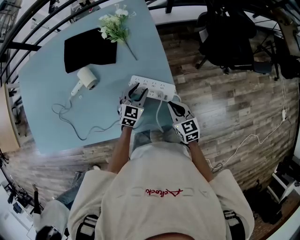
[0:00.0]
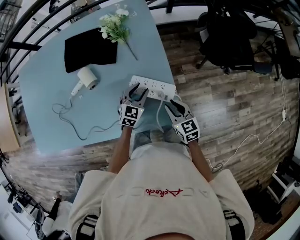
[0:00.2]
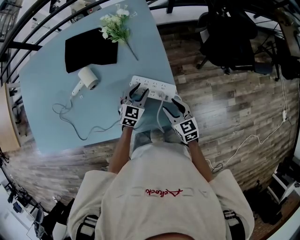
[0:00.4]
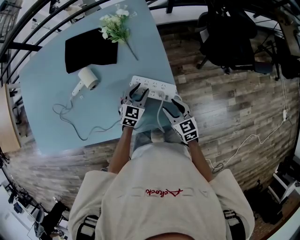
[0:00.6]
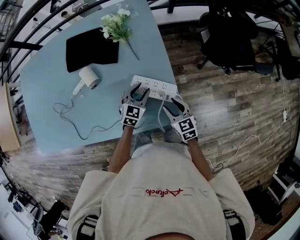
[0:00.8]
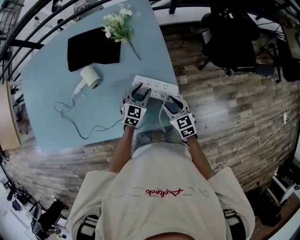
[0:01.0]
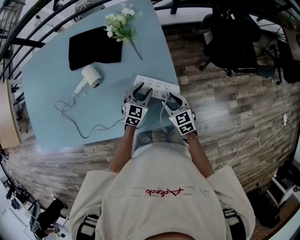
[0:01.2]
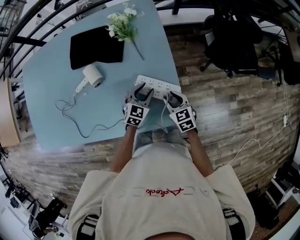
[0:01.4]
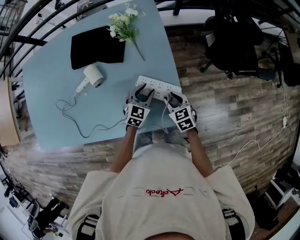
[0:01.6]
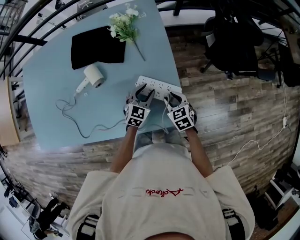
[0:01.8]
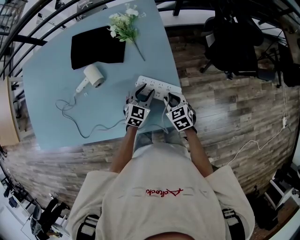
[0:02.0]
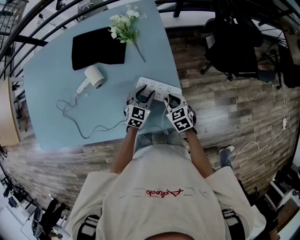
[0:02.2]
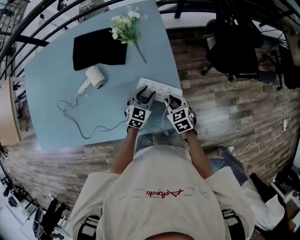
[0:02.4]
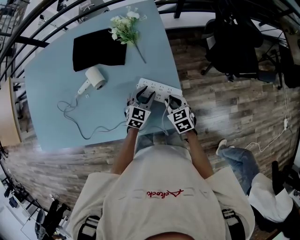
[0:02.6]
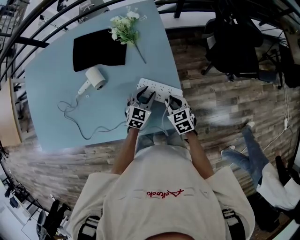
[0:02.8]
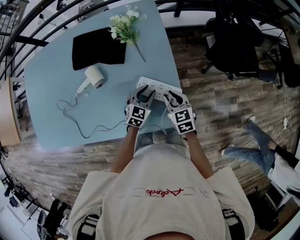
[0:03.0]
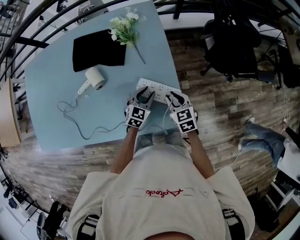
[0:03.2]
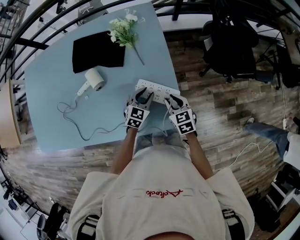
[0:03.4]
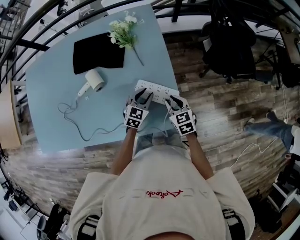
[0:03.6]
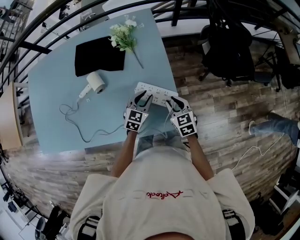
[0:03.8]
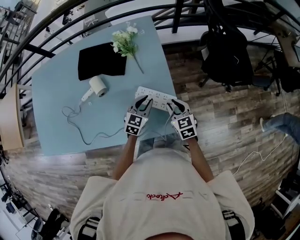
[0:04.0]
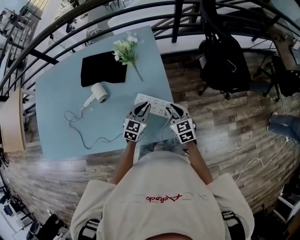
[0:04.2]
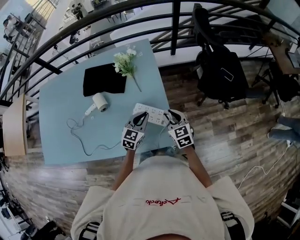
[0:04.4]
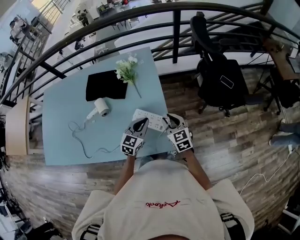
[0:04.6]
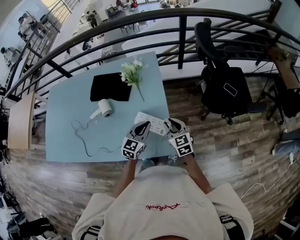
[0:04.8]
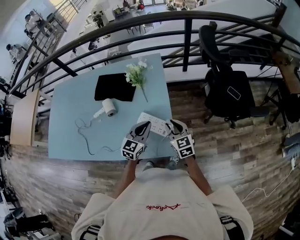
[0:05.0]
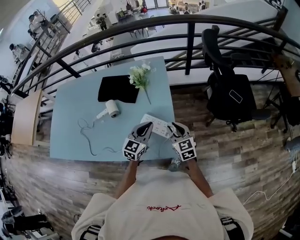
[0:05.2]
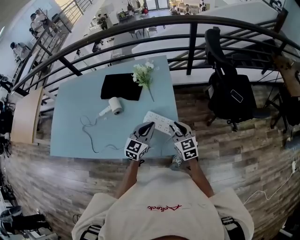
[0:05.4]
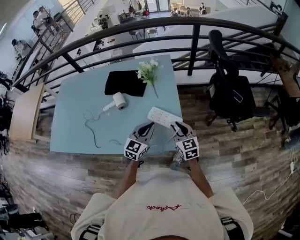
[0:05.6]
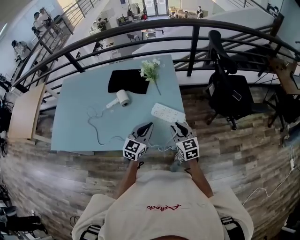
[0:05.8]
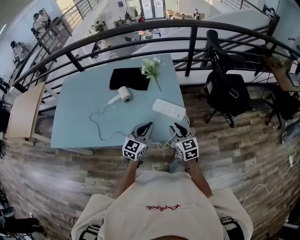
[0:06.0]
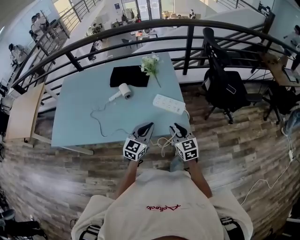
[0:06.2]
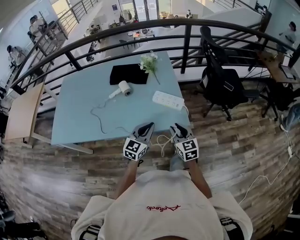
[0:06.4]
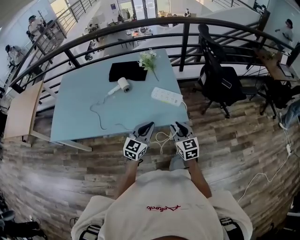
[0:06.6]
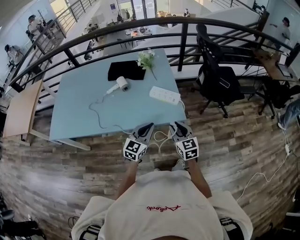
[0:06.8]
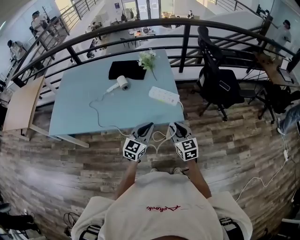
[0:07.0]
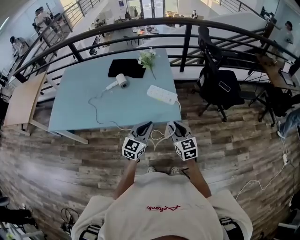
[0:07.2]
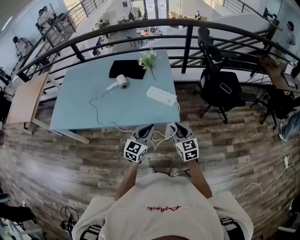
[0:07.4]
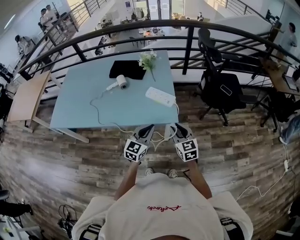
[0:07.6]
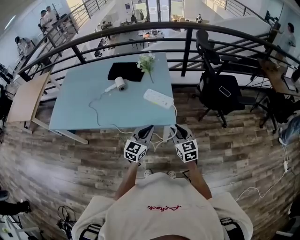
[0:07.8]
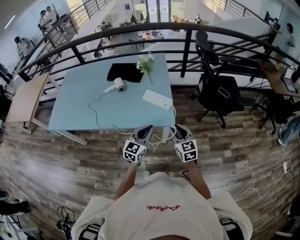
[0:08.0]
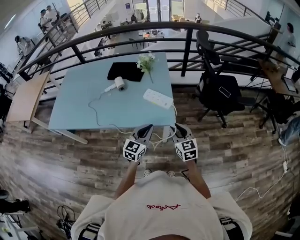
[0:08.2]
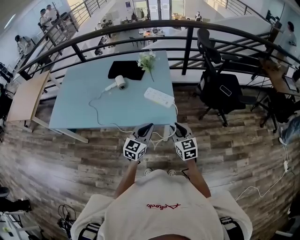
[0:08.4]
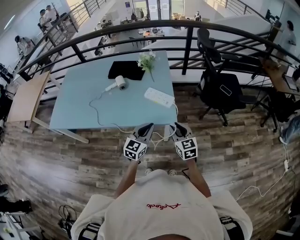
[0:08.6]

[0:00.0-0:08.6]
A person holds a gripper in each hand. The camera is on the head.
0:00.0 to 0:01.4: The right gripper ends up some 5 cm from where it was, and opens its fingers.
0:01.4 to 0:02.8: The grippers make only small movements.
0:02.8 to 0:04.4: Both grippers move upward, approximately 10 cm. The left gripper closes its fingers.
0:04.4 to 0:05.8: The grippers both shift backward, upward and to the left by about 15 cm.
0:05.8 to 0:07.2: The grippers both shift backward by approximately 20 cm.
0:07.2 to 0:08.6: The right gripper changes place by approximately 5 cm.

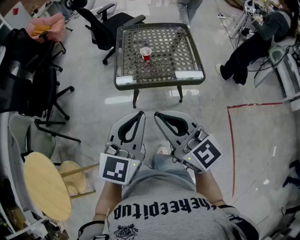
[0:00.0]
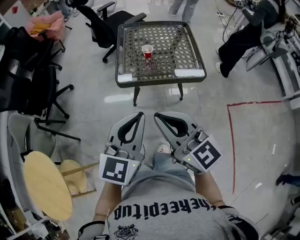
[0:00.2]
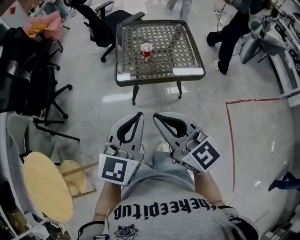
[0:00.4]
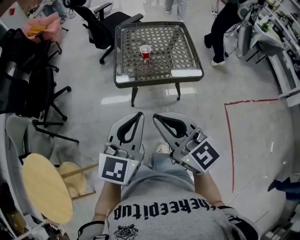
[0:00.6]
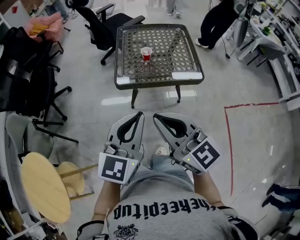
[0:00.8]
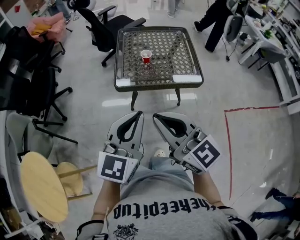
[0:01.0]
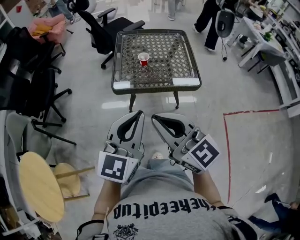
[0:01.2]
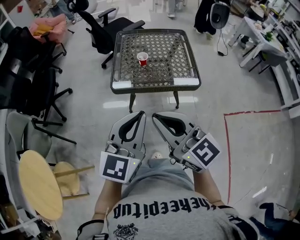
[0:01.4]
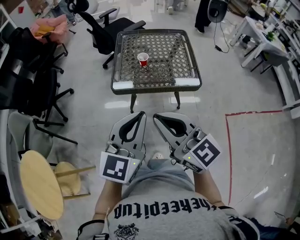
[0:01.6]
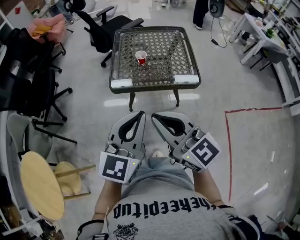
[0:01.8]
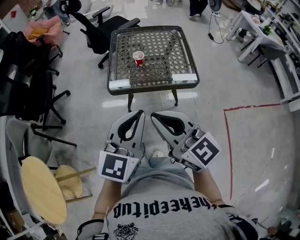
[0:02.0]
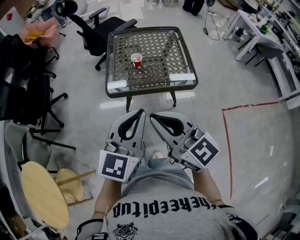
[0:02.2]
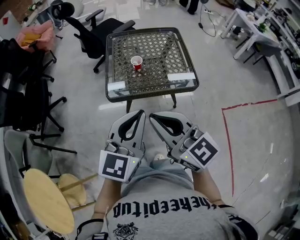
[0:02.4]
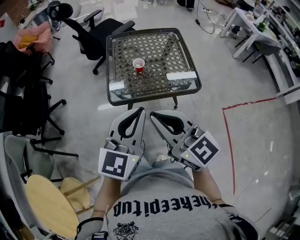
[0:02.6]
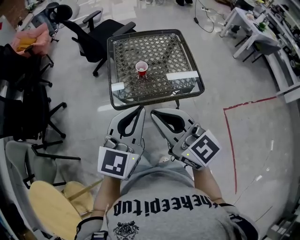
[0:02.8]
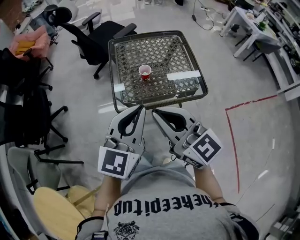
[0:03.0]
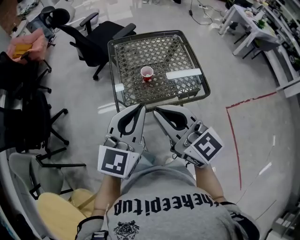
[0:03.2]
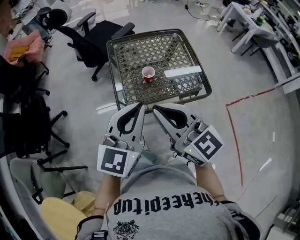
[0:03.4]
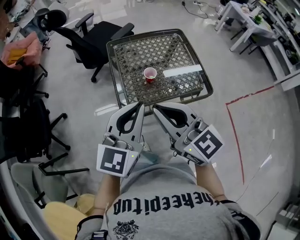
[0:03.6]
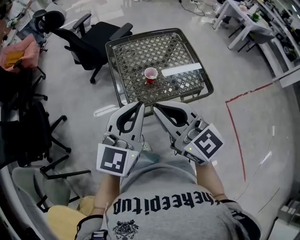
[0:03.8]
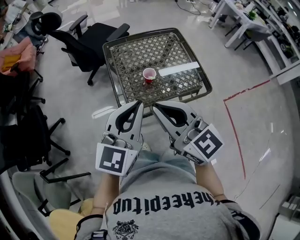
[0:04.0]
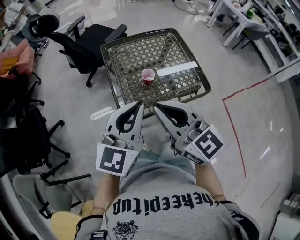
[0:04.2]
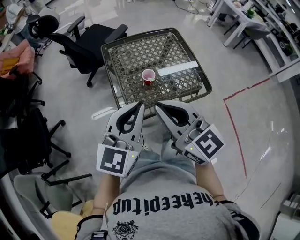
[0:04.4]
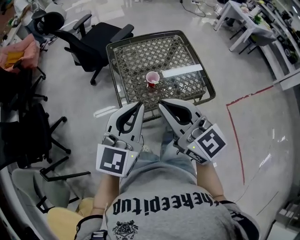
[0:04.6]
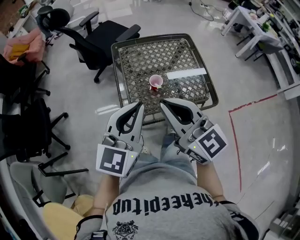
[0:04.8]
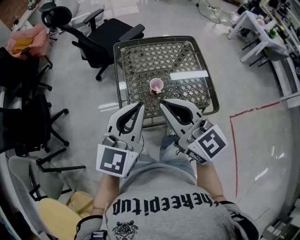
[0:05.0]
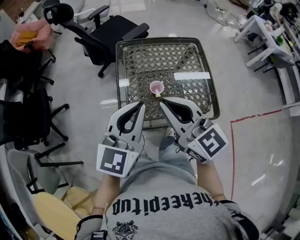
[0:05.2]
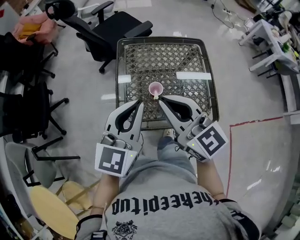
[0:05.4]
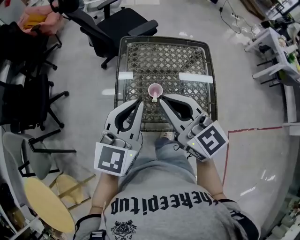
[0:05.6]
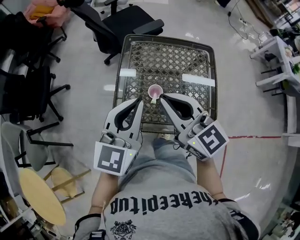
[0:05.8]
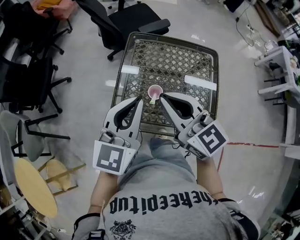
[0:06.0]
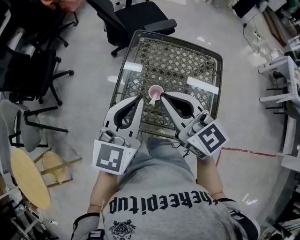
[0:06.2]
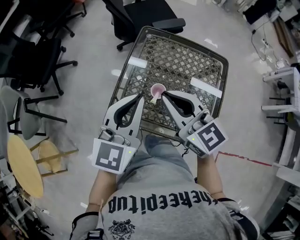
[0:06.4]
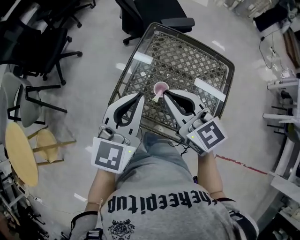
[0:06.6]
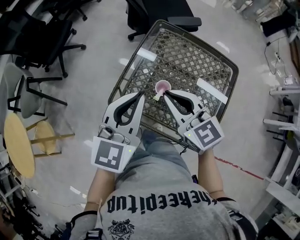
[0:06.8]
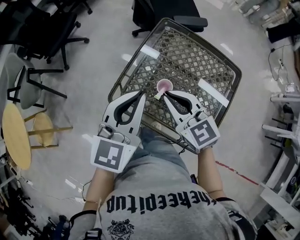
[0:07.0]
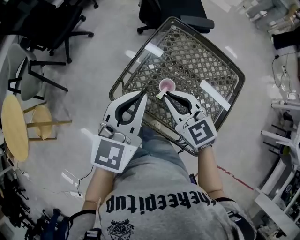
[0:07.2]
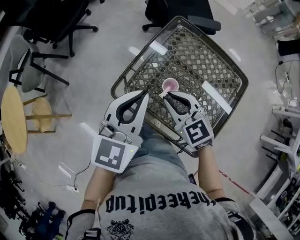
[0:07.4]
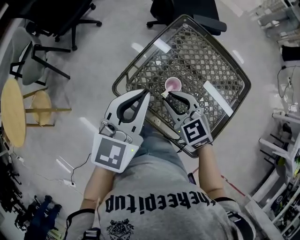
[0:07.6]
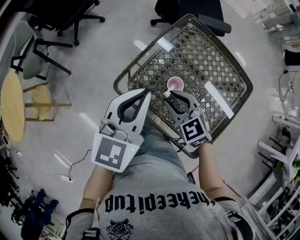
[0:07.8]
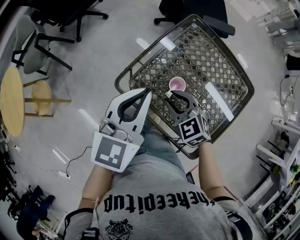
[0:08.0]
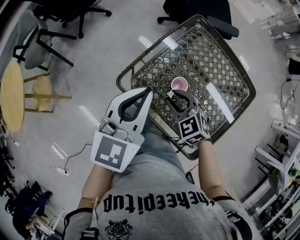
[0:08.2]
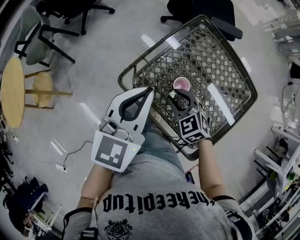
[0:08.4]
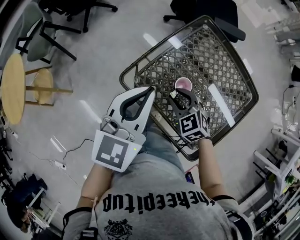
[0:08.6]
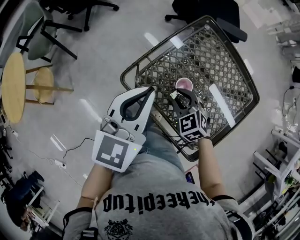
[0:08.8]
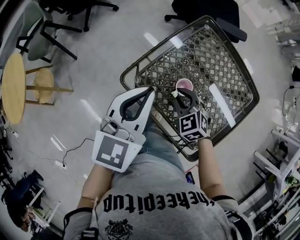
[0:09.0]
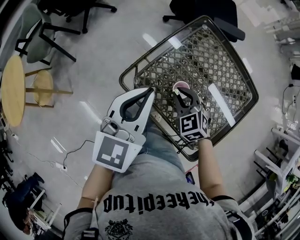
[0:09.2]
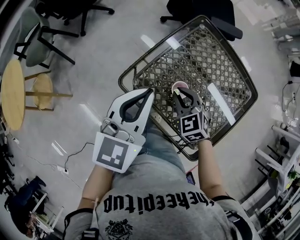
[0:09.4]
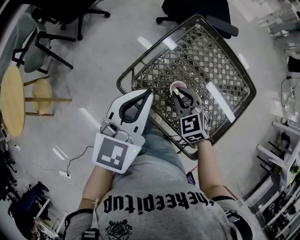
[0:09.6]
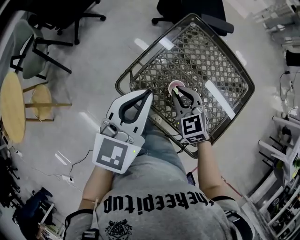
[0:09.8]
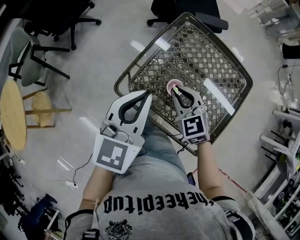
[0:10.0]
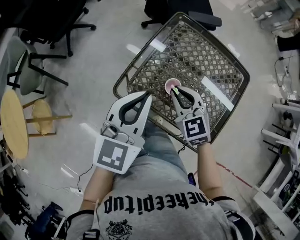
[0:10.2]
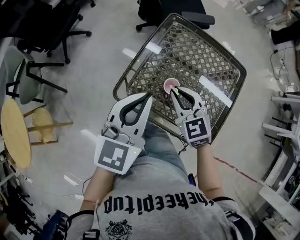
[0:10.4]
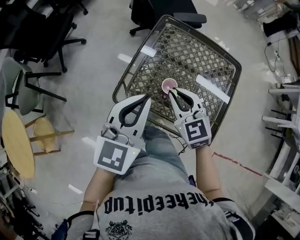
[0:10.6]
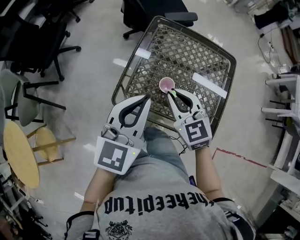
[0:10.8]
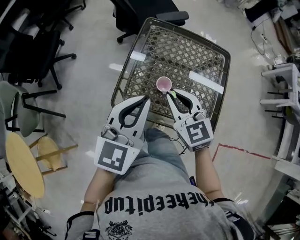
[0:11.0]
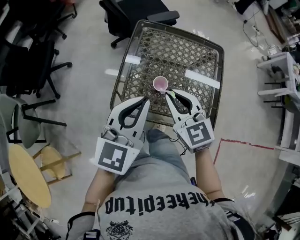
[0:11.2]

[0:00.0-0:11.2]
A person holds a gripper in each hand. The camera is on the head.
0:00.0 to 0:01.6: The grippers stay close to where they were, moving slightly.
0:01.6 to 0:03.2: The two grippers go roughly 20 cm forward.
0:03.2 to 0:04.8: Both grippers travel together forward, roughly 10 cm.
0:04.8 to 0:06.4: The left gripper changes place by roughly 10 cm, and turns by about 30 degrees, while the right gripper moves approximately 15 cm, and swivels some 30 degrees.
0:06.4 to 0:08.0: The left gripper ends up some 5 cm from where it was, and swivels some 20 degrees; the right gripper shifts about 20 cm downward, turns by some 40 degrees, and opens.
0:08.0 to 0:09.6: The right gripper closes.
0:09.6 to 0:11.2: The left gripper moves some 5 cm, and changes its angle by about 30 degrees; the right gripper travels upward by about 15 cm, and changes its angle by about 40 degrees.

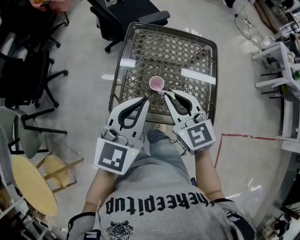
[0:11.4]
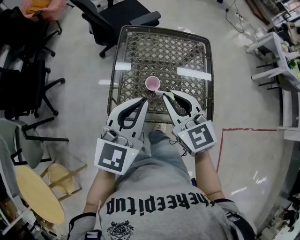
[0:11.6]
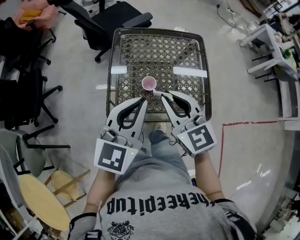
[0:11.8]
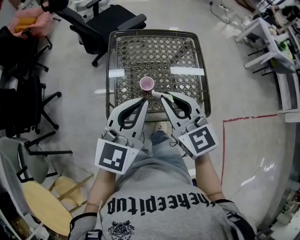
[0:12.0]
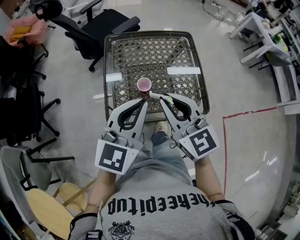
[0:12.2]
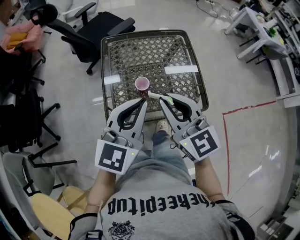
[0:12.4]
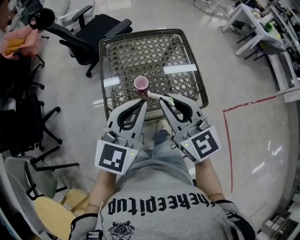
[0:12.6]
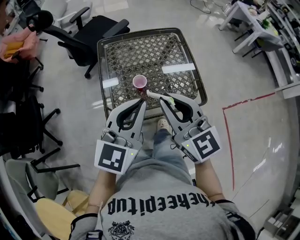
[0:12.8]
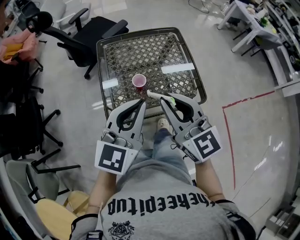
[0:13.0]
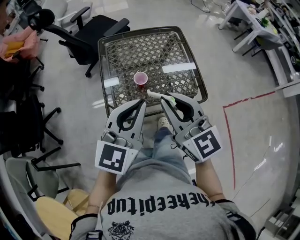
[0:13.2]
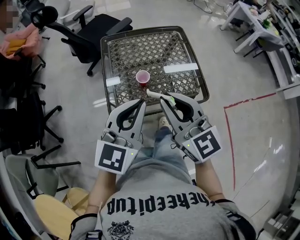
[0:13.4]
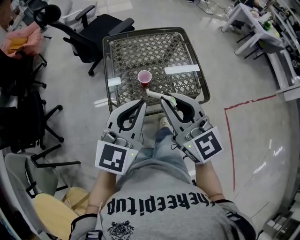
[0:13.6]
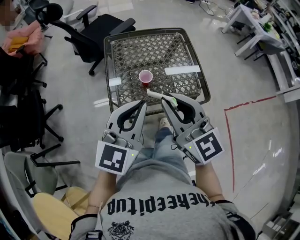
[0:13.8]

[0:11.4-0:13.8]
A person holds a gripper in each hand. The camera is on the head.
0:11.4 to 0:12.6: The right gripper heads upward and backward, covering some 10 cm. The left gripper shifts by roughly 5 cm.
0:12.6 to 0:13.8: The grippers both shift backward by some 5 cm.

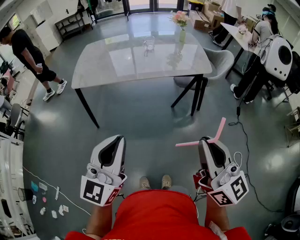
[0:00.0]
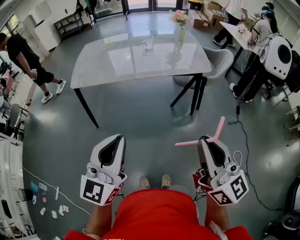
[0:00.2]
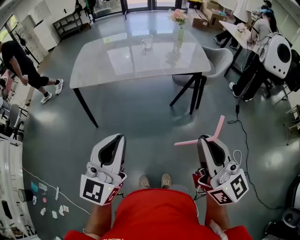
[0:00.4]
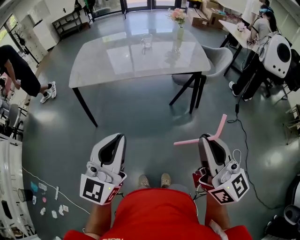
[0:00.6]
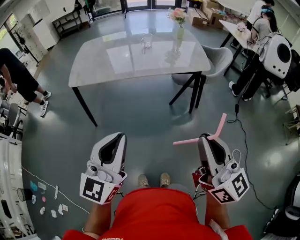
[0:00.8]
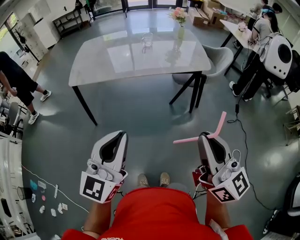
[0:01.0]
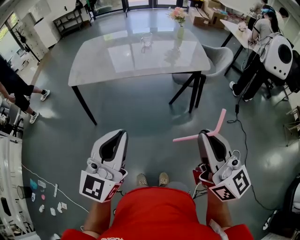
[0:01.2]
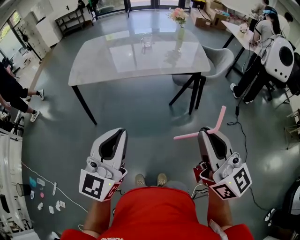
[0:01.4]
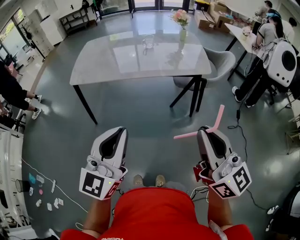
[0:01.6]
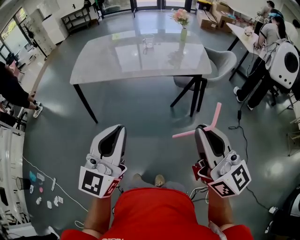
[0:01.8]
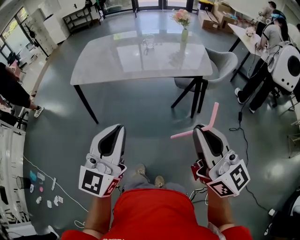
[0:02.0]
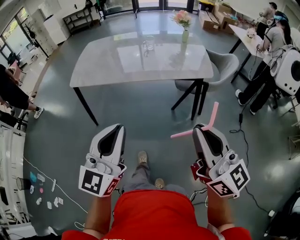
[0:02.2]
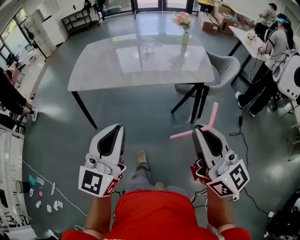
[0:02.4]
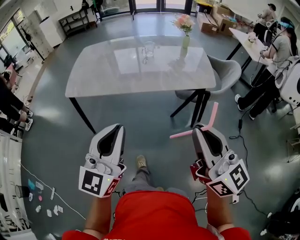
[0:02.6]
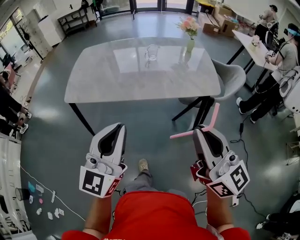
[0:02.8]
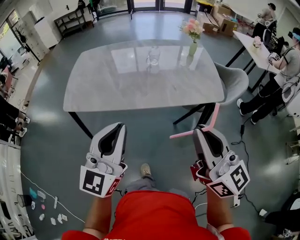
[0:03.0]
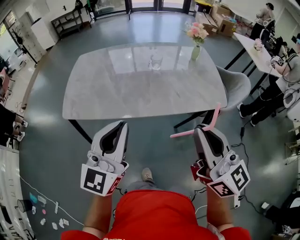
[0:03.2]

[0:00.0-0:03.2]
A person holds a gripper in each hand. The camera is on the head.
0:00.0 to 0:01.6: The left gripper travels to the right by some 5 cm, while the right gripper changes place by roughly 5 cm.
0:01.6 to 0:03.2: The two grippers go roughly 30 cm forward.
